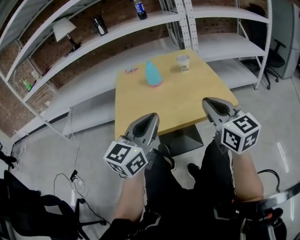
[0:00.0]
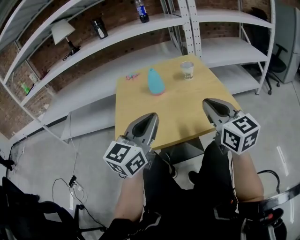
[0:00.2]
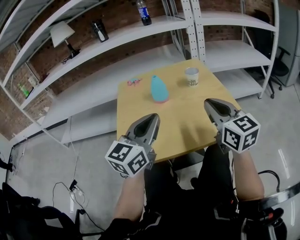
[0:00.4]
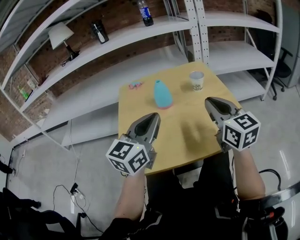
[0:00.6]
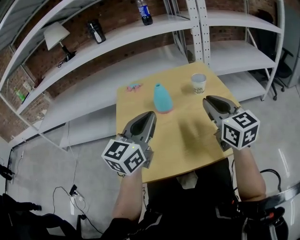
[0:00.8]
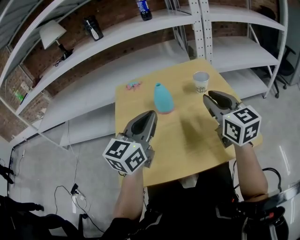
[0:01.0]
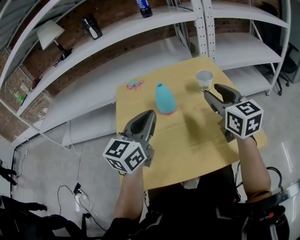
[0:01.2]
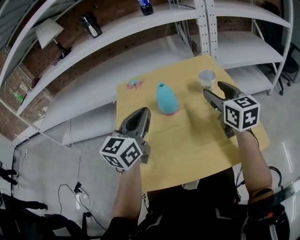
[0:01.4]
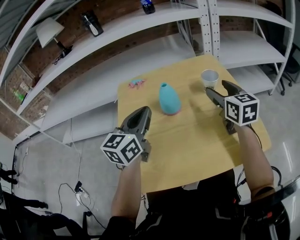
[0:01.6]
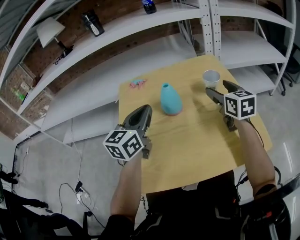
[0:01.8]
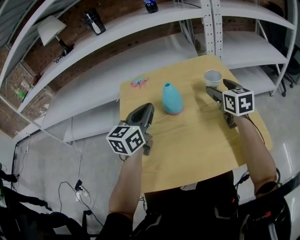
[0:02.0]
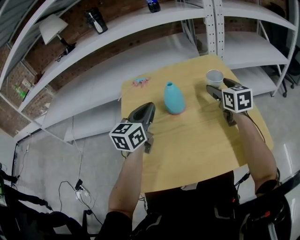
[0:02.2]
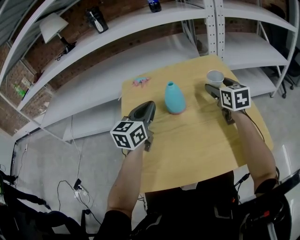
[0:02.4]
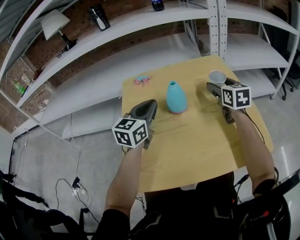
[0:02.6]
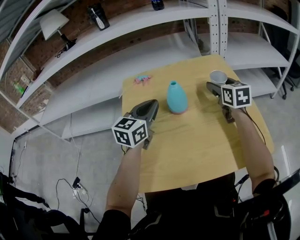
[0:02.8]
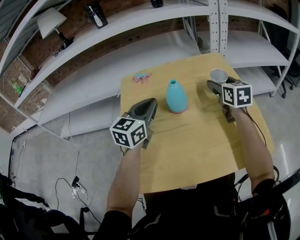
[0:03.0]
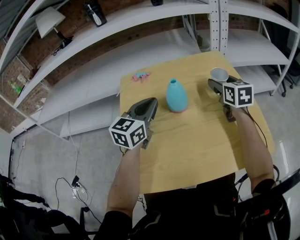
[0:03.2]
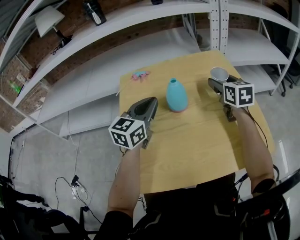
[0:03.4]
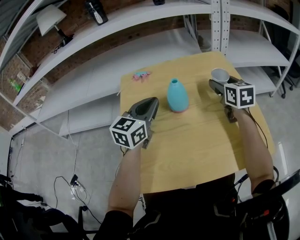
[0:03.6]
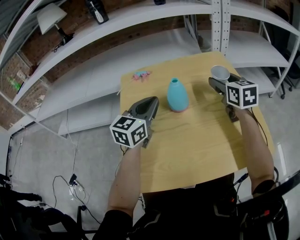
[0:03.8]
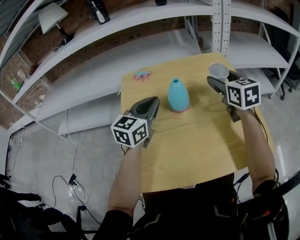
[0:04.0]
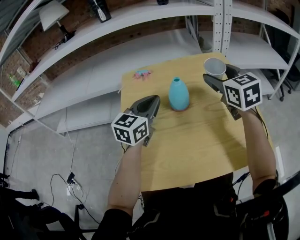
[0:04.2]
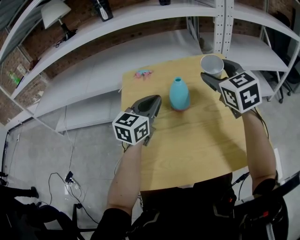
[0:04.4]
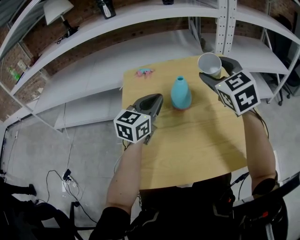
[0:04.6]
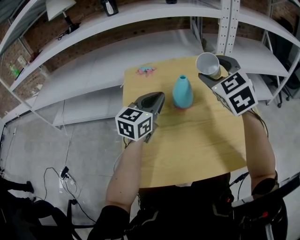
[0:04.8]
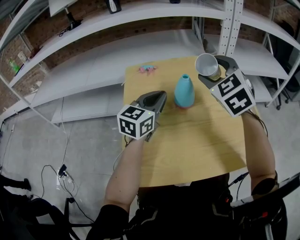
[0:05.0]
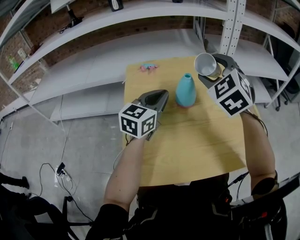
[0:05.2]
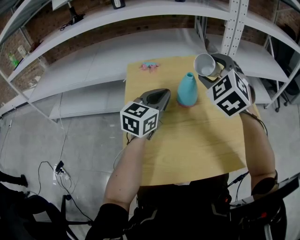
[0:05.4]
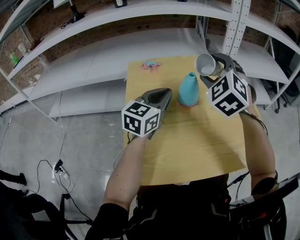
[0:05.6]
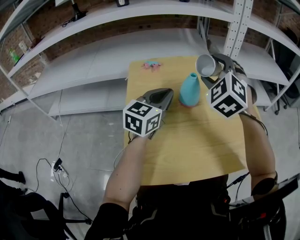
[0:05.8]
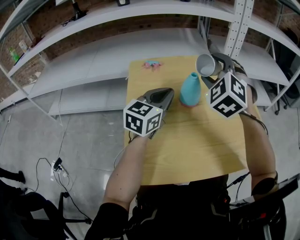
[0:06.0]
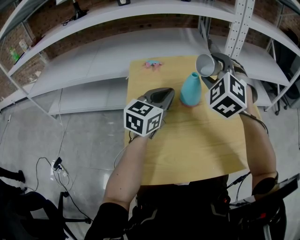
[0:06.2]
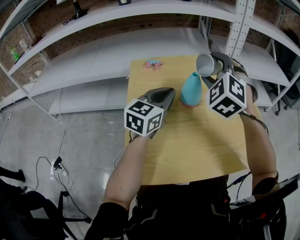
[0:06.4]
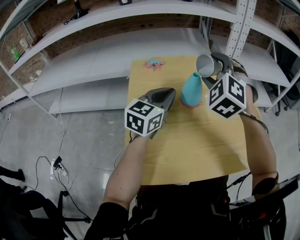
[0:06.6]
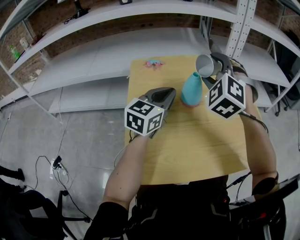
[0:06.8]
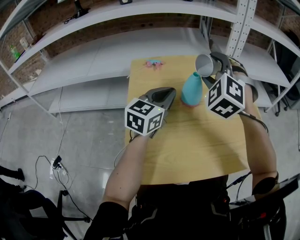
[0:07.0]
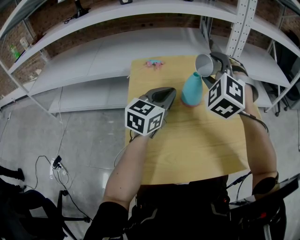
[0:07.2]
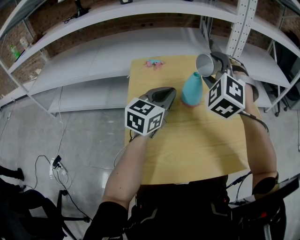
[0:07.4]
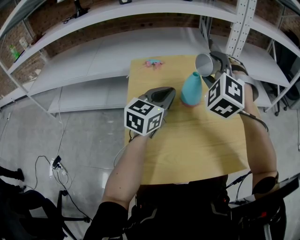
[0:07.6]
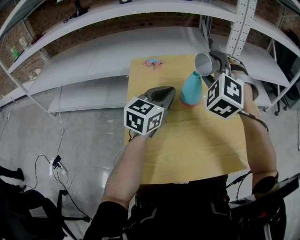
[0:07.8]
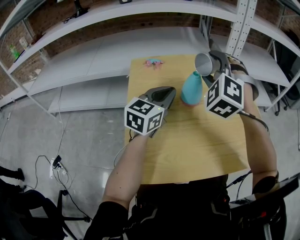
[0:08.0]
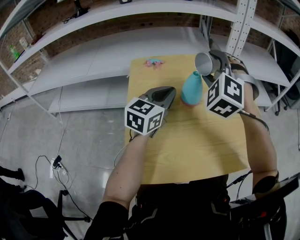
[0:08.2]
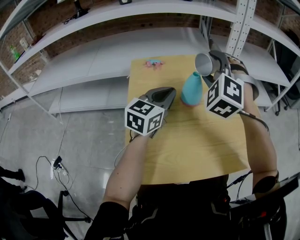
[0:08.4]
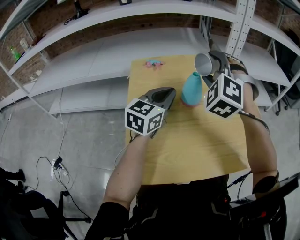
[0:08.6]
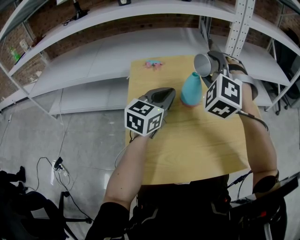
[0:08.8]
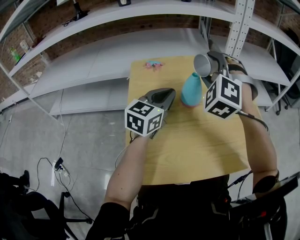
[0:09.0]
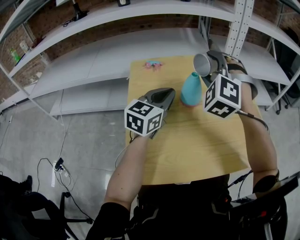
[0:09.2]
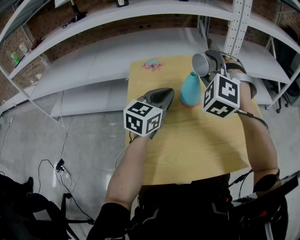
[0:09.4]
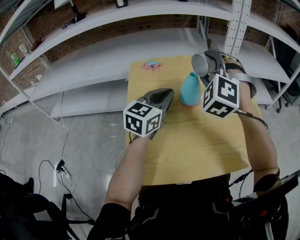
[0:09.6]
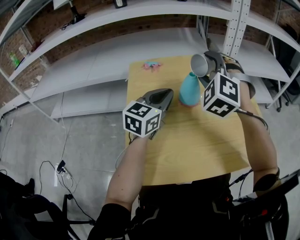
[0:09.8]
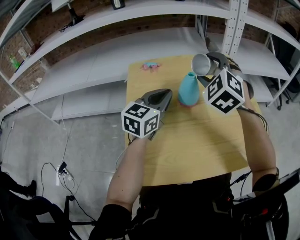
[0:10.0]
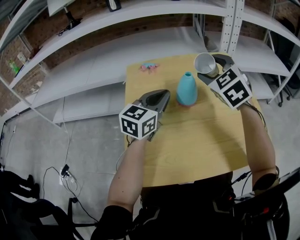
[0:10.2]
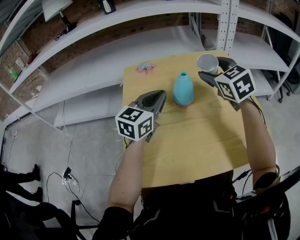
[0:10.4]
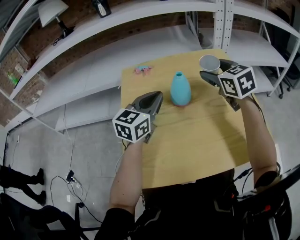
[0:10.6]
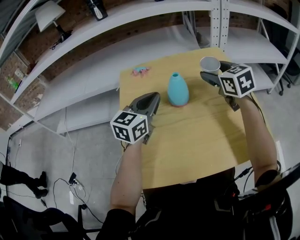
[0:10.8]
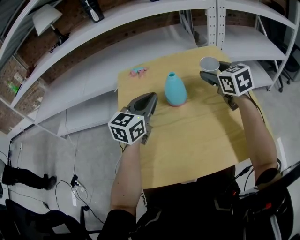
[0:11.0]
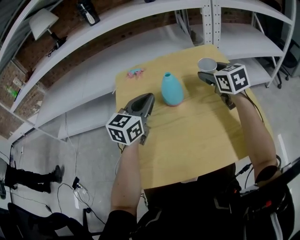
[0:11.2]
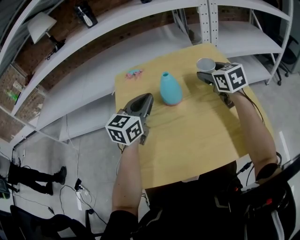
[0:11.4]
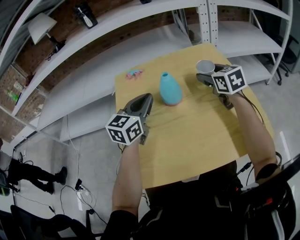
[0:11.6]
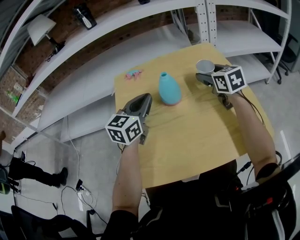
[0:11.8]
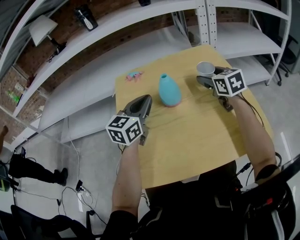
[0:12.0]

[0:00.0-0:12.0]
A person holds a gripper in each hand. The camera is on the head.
0:00.0 to 0:01.6: The right gripper is displaced forward by about 30 cm, and opens up. Meanwhile the left gripper is displaced forward and to the left by approximately 30 cm.
0:01.6 to 0:03.0: Both grippers move forward, some 5 cm.
0:03.0 to 0:04.4: The right gripper shifts about 15 cm upward, to the left and backward, and swivels approximately 30 degrees.
0:04.4 to 0:06.0: The right gripper shifts some 5 cm to the left, and rolls counterclockwise, seen from behind, by approximately 40 degrees.
0:06.0 to 0:07.6: The grippers move only a little.
0:07.6 to 0:09.0: Both grippers stay put.
0:09.0 to 0:10.4: The right gripper travels to the right by about 5 cm, and twists some 50 degrees clockwise, seen from behind.
0:10.4 to 0:12.0: The right gripper moves downward and to the right, about 10 cm, and rotates about 20 degrees.

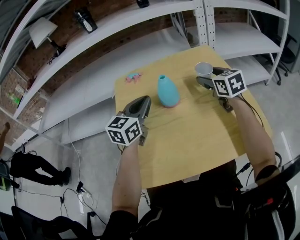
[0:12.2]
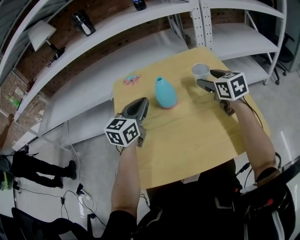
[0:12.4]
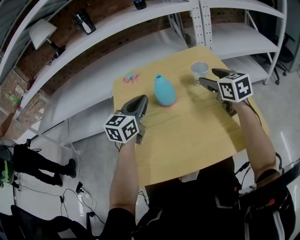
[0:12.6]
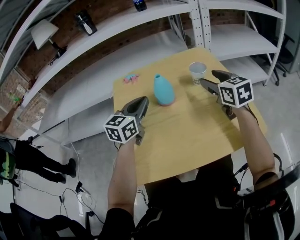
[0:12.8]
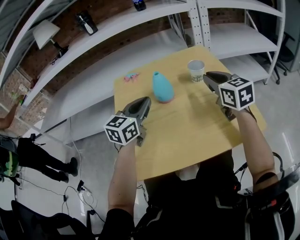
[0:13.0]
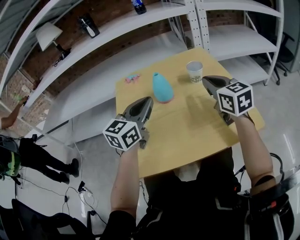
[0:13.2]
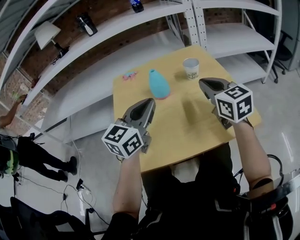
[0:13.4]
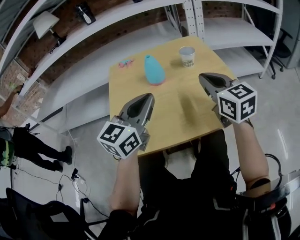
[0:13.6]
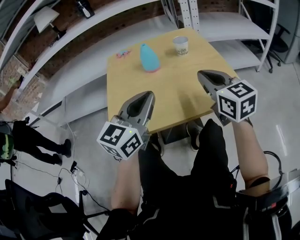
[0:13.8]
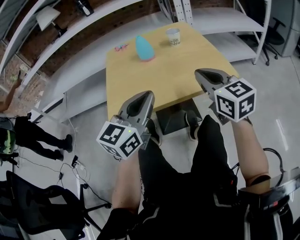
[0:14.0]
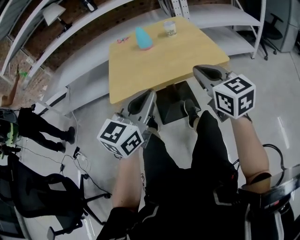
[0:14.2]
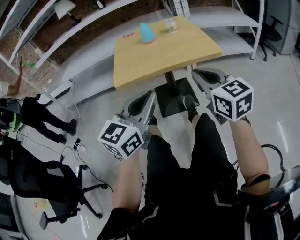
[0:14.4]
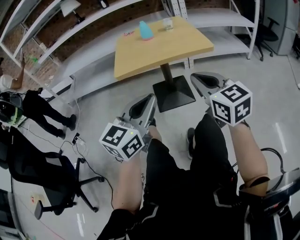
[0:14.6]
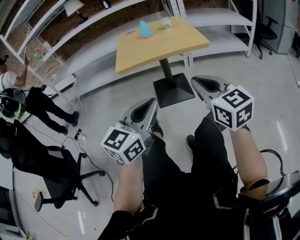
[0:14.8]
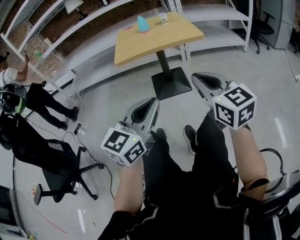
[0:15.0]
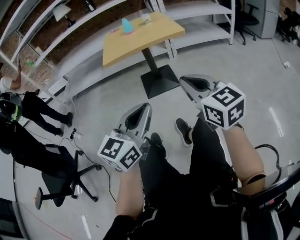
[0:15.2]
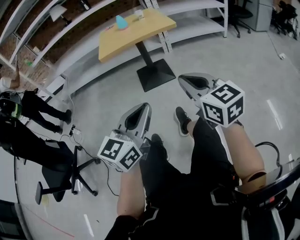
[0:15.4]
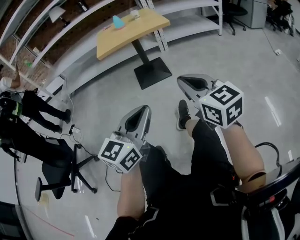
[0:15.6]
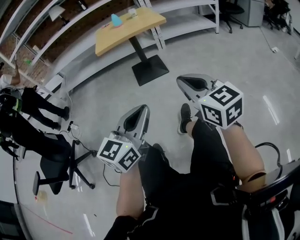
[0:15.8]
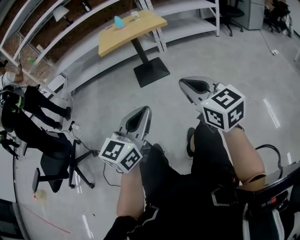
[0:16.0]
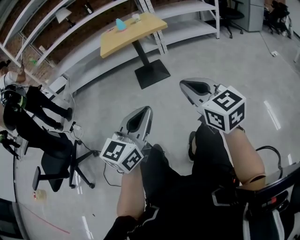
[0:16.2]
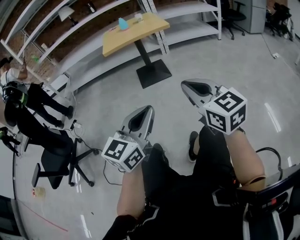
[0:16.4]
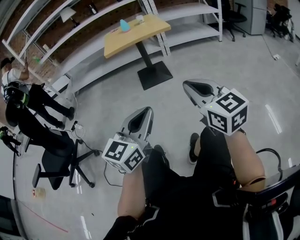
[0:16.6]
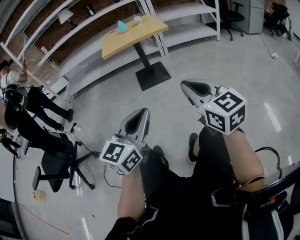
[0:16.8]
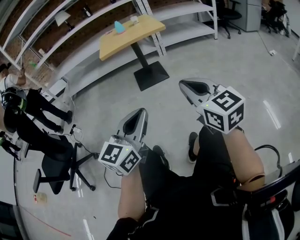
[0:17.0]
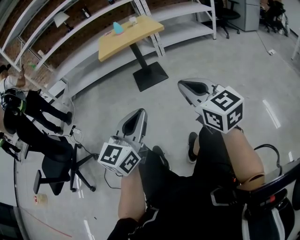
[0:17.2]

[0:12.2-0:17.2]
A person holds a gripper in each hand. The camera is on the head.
0:12.2 to 0:13.8: The right gripper is displaced backward by some 25 cm, and closes. Meanwhile the left gripper travels backward and to the right by approximately 25 cm.
0:13.8 to 0:15.6: The two grippers travel together, backward, about 70 cm.
0:15.6 to 0:17.2: Both grippers move backward, about 10 cm.

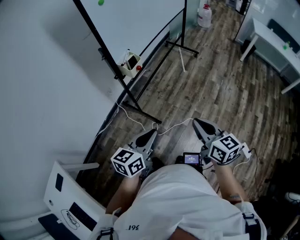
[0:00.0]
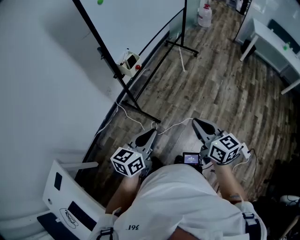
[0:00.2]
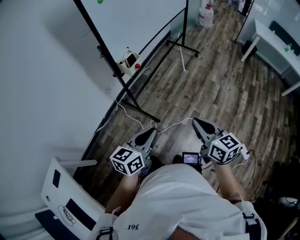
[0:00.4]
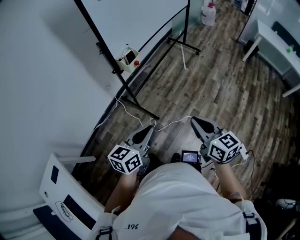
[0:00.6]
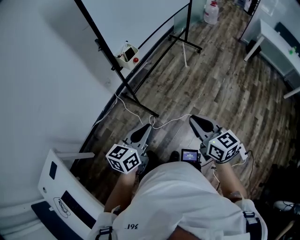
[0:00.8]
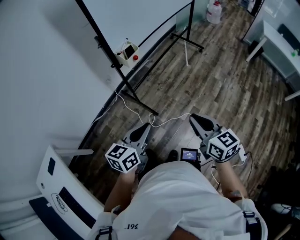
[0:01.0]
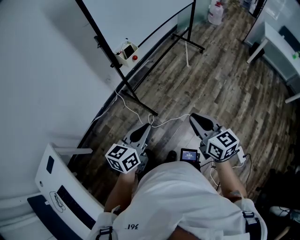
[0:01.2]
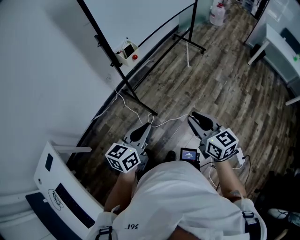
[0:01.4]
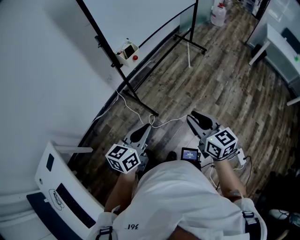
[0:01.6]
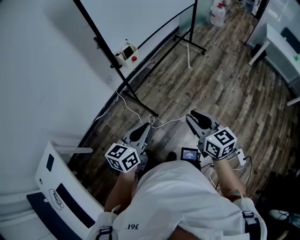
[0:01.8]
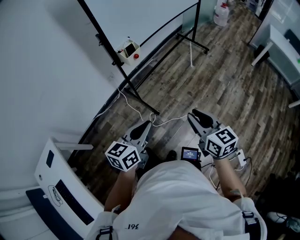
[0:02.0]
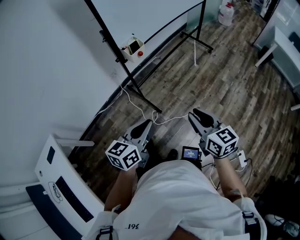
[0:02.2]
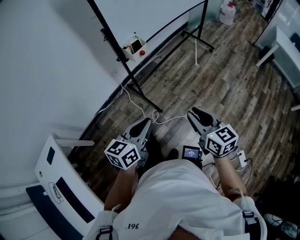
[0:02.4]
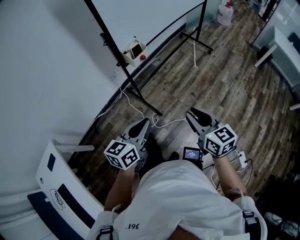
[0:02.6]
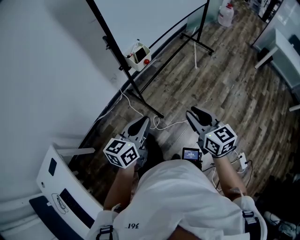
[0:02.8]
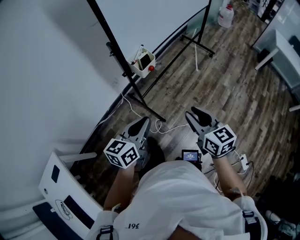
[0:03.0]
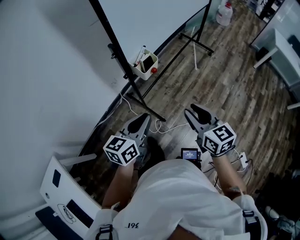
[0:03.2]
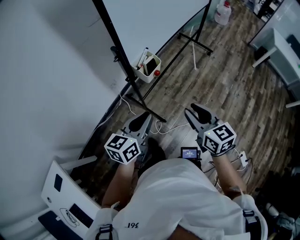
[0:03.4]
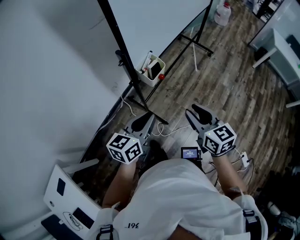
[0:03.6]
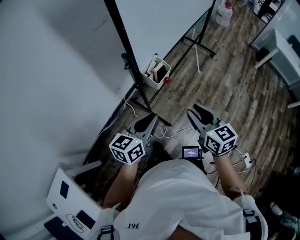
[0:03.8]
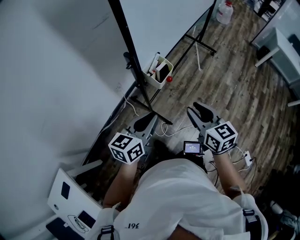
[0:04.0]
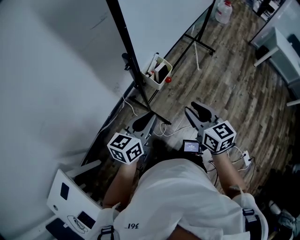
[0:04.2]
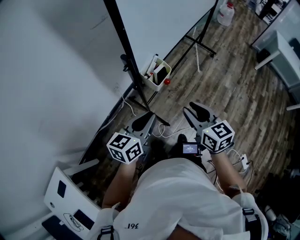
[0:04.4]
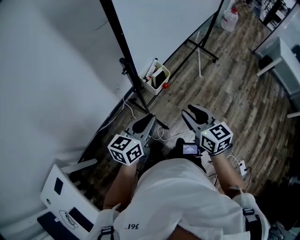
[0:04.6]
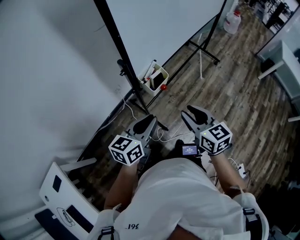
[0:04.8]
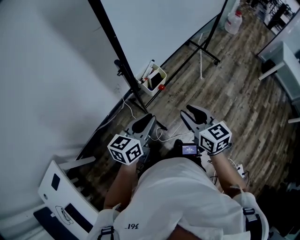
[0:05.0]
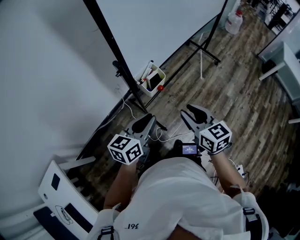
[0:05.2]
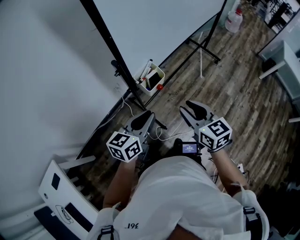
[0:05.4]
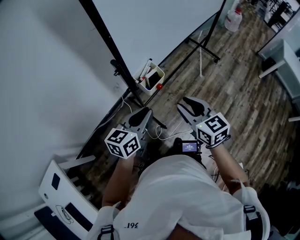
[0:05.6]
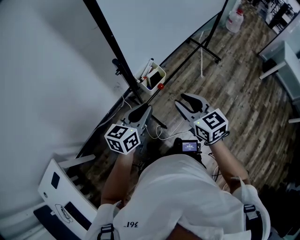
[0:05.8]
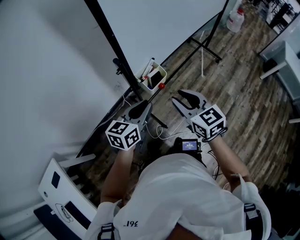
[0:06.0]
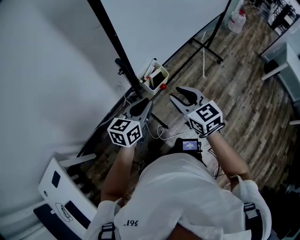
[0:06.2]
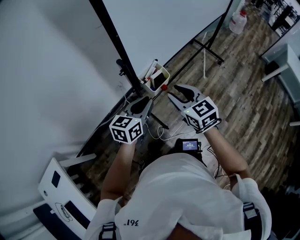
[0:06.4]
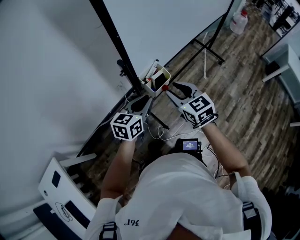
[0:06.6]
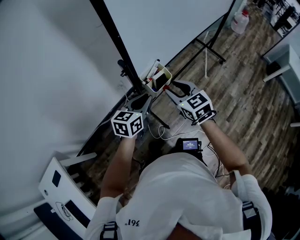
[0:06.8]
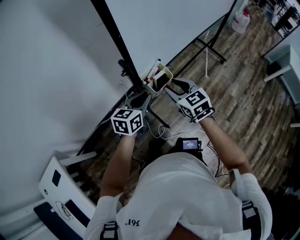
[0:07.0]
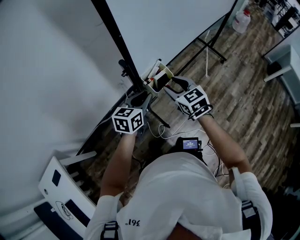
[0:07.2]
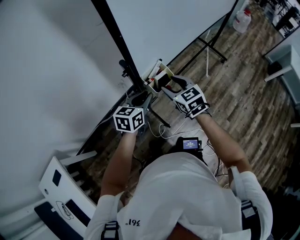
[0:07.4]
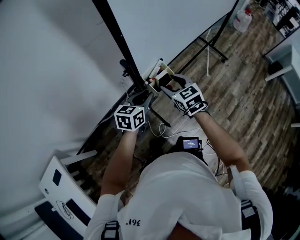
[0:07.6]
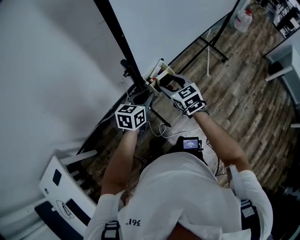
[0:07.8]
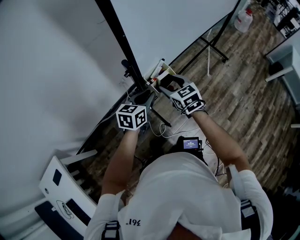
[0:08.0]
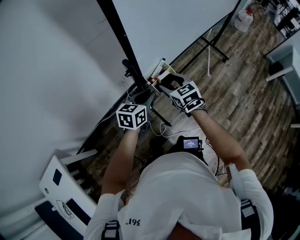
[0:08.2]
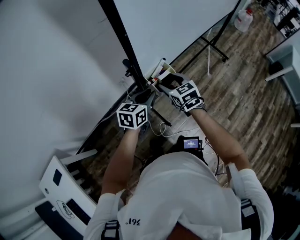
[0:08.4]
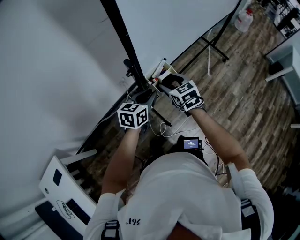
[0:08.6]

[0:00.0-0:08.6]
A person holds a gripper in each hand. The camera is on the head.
0:00.0 to 0:01.4: The right gripper ends up about 5 cm from where it was.
0:01.4 to 0:02.8: The grippers both shift forward and to the left by about 10 cm.
0:02.8 to 0:04.4: Both grippers travel together forward and to the left, some 20 cm.
0:04.4 to 0:05.8: The right gripper travels forward by about 5 cm; the left gripper moves some 5 cm.
0:05.8 to 0:07.2: The left gripper moves forward and downward, approximately 10 cm, while the right gripper goes roughly 15 cm forward, downward and to the left.
0:07.2 to 0:08.6: The right gripper changes place by about 5 cm.
